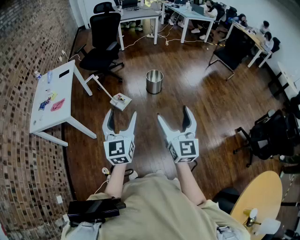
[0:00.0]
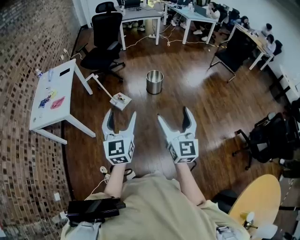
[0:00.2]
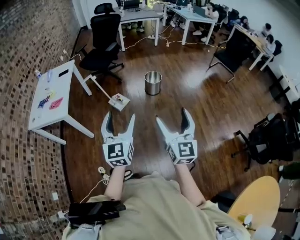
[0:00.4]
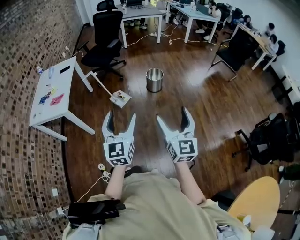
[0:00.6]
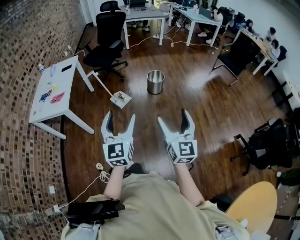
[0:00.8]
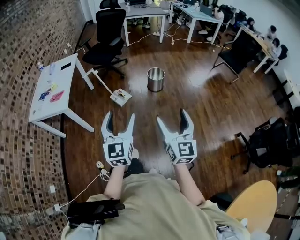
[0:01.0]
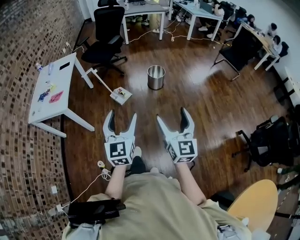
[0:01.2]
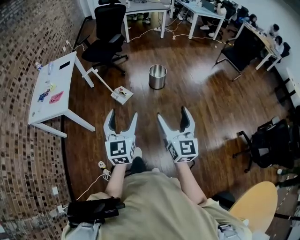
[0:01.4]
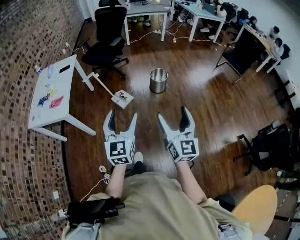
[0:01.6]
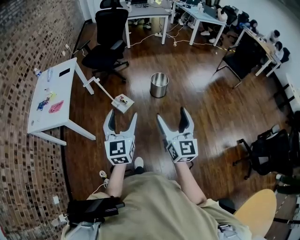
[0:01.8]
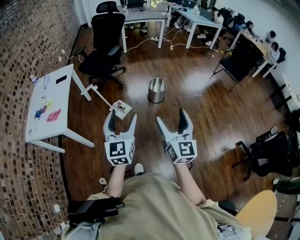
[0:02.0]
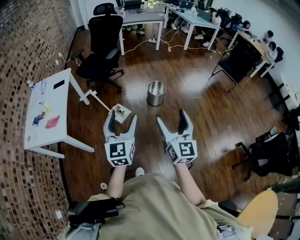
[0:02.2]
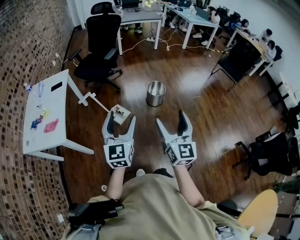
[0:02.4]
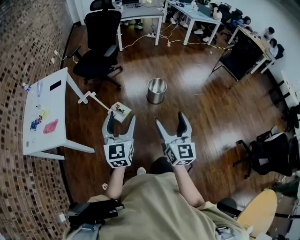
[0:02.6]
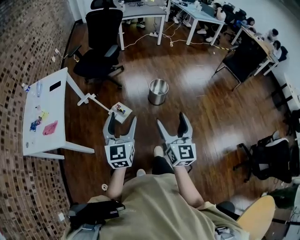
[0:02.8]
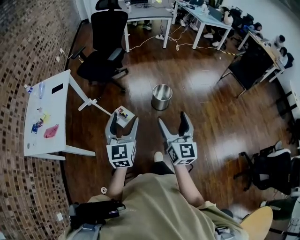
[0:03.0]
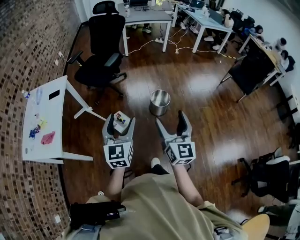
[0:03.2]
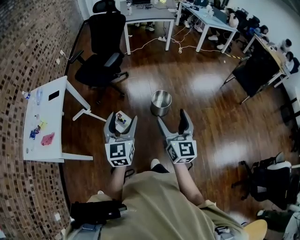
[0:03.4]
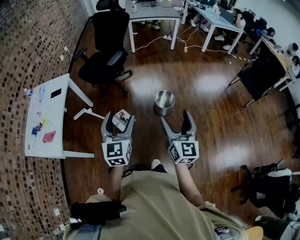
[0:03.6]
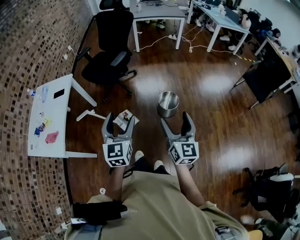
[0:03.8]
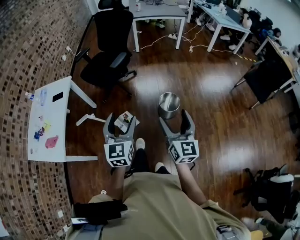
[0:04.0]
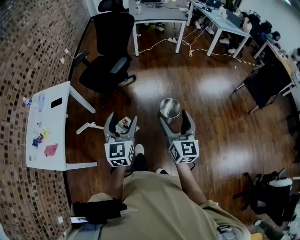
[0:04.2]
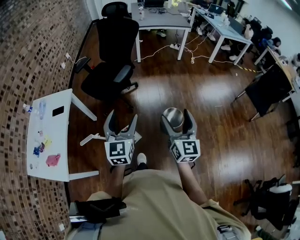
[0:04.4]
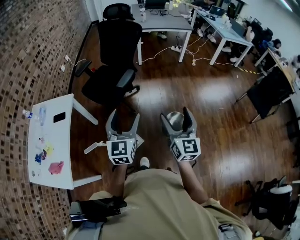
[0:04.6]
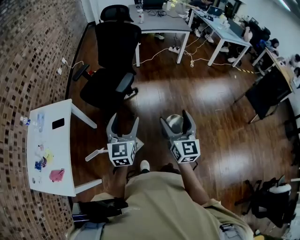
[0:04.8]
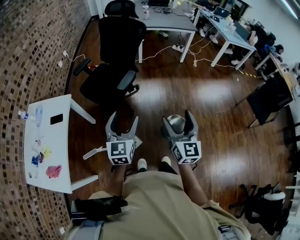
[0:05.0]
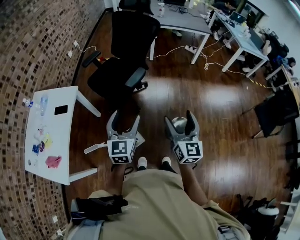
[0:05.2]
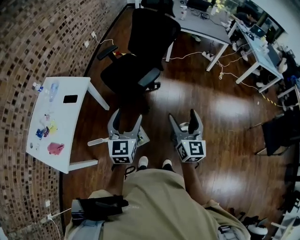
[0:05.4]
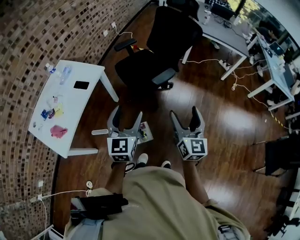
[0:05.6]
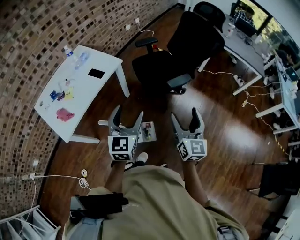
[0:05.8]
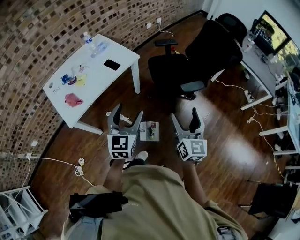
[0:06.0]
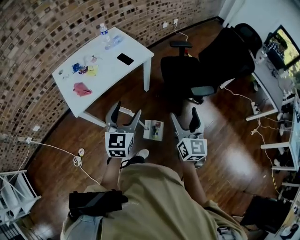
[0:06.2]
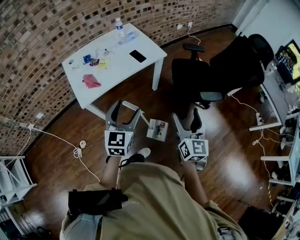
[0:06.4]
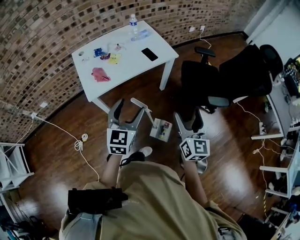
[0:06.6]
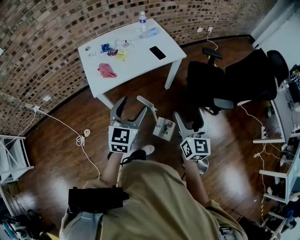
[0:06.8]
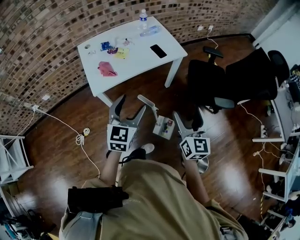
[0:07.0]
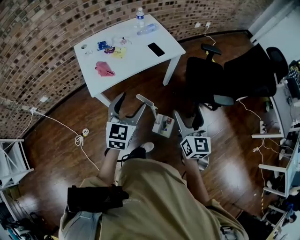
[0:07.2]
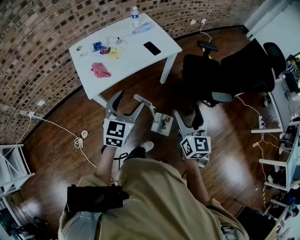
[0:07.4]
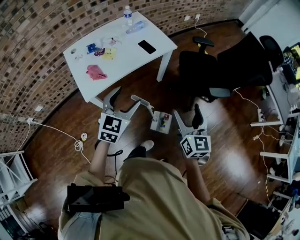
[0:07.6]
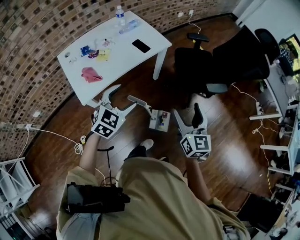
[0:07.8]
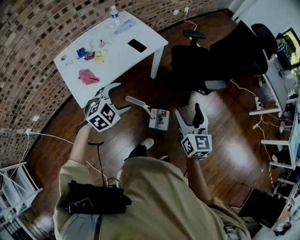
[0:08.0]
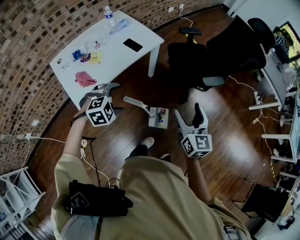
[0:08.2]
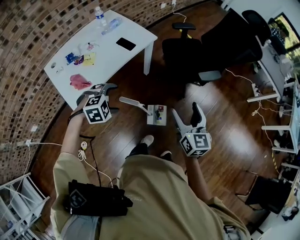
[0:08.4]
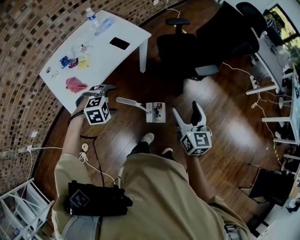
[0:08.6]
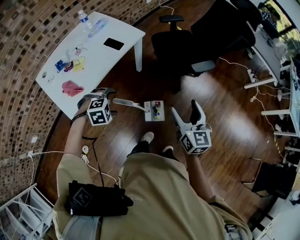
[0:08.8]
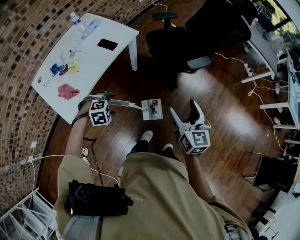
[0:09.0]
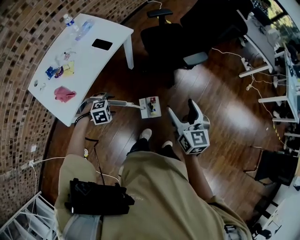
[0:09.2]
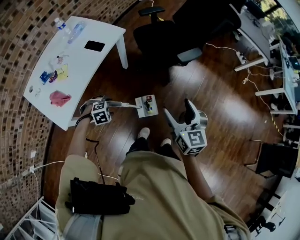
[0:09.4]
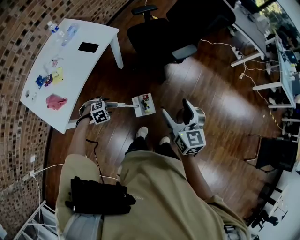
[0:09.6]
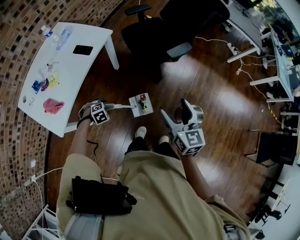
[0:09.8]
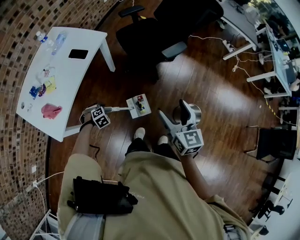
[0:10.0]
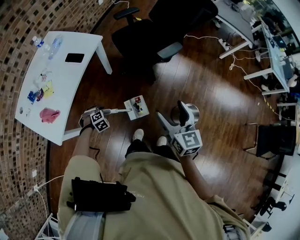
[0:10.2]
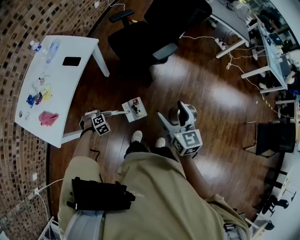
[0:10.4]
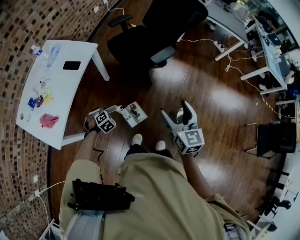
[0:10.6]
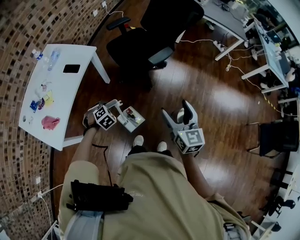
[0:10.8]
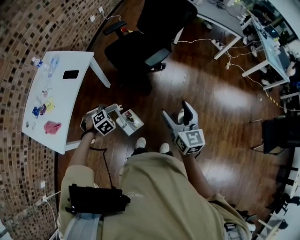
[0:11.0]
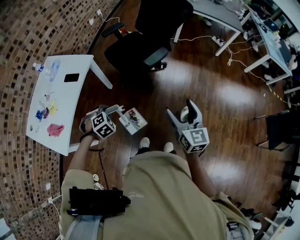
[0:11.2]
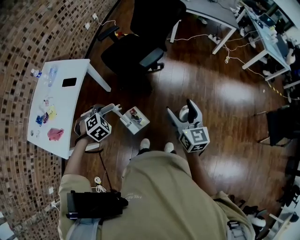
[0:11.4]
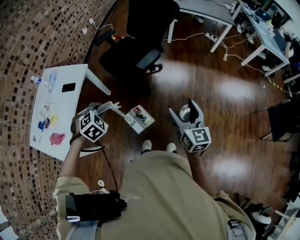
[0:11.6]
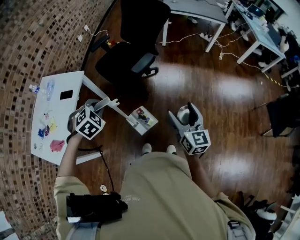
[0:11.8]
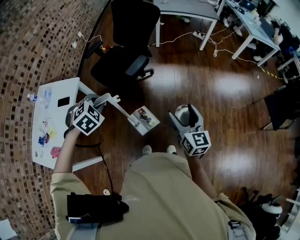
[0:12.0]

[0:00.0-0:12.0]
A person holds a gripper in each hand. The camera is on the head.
0:00.0 to 0:01.6: Both grippers move forward, approximately 5 cm.
0:01.6 to 0:03.0: Both grippers travel together forward, approximately 25 cm.
0:03.0 to 0:04.4: The two grippers go approximately 30 cm forward.
0:04.4 to 0:06.0: The right gripper changes place by approximately 30 cm, and rotates some 40 degrees, while the left gripper ends up roughly 20 cm from where it was, and swivels some 40 degrees.
0:06.0 to 0:07.6: Both grippers move to the left, some 15 cm.
0:07.6 to 0:09.0: The left gripper heads downward, covering about 20 cm, and points its fingers roughly 50 degrees further downward; the right gripper moves some 10 cm.
0:09.0 to 0:10.4: The left gripper moves downward, roughly 15 cm, and closes its fingers, while the right gripper ends up roughly 10 cm from where it was.
0:10.4 to 0:12.0: The left gripper moves upward and to the right, roughly 40 cm, while the right gripper is displaced to the right by some 20 cm, and rotates roughly 20 degrees.

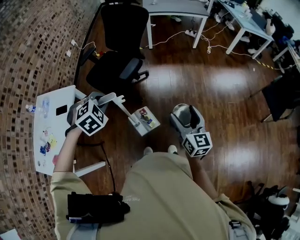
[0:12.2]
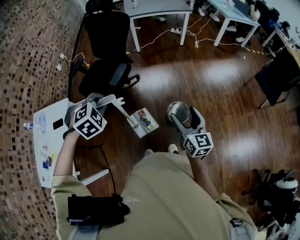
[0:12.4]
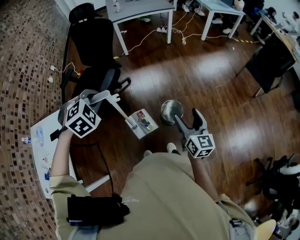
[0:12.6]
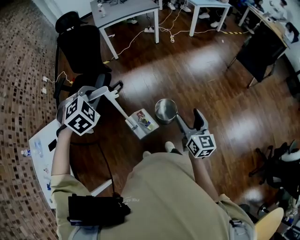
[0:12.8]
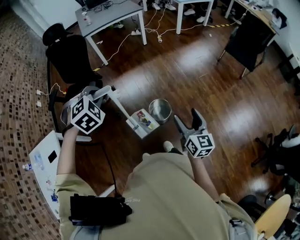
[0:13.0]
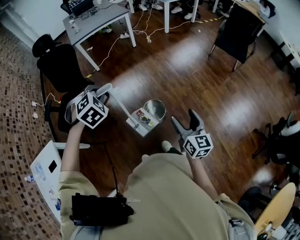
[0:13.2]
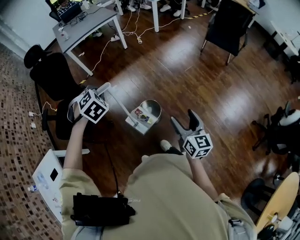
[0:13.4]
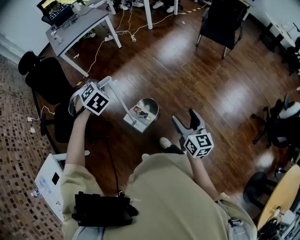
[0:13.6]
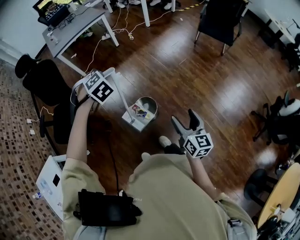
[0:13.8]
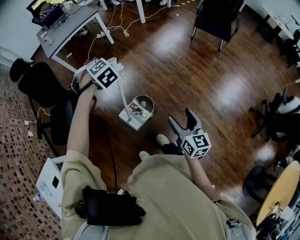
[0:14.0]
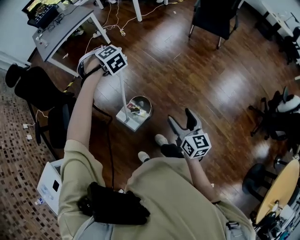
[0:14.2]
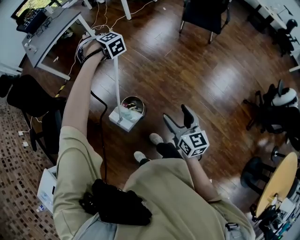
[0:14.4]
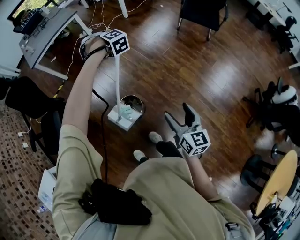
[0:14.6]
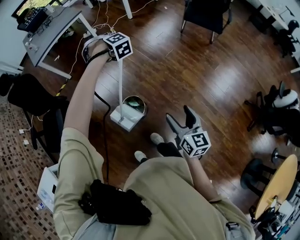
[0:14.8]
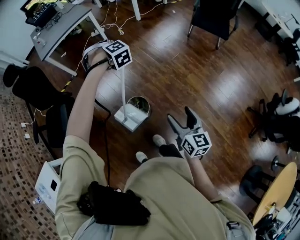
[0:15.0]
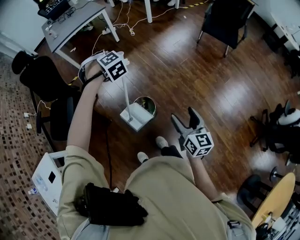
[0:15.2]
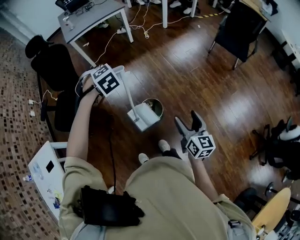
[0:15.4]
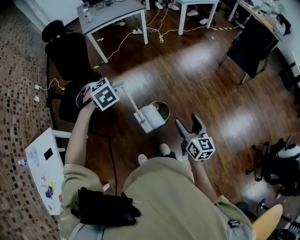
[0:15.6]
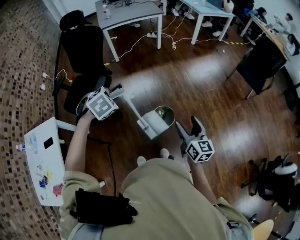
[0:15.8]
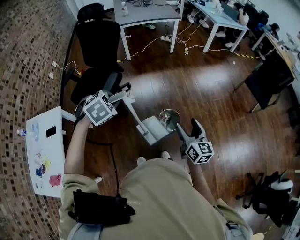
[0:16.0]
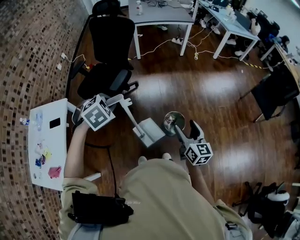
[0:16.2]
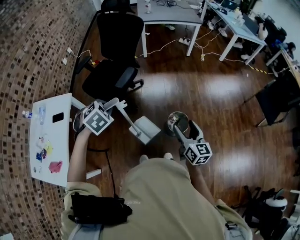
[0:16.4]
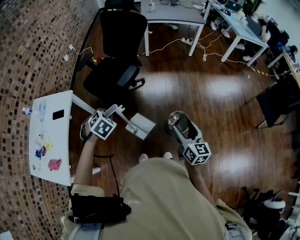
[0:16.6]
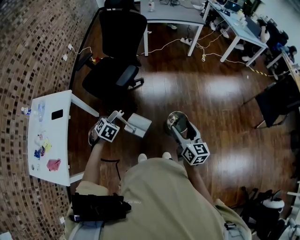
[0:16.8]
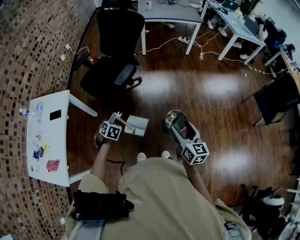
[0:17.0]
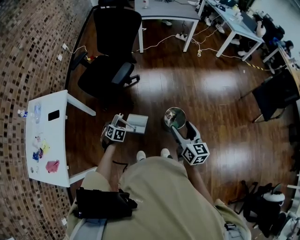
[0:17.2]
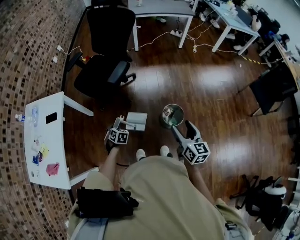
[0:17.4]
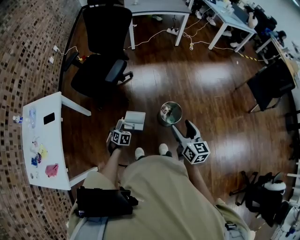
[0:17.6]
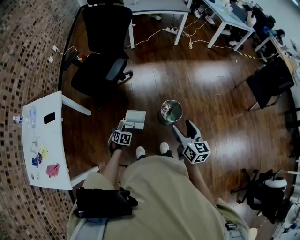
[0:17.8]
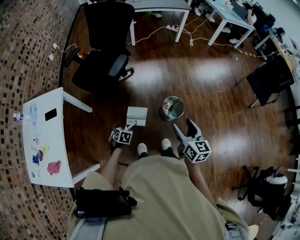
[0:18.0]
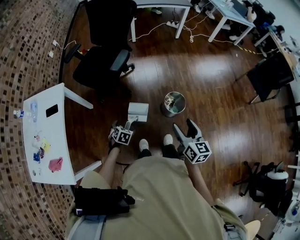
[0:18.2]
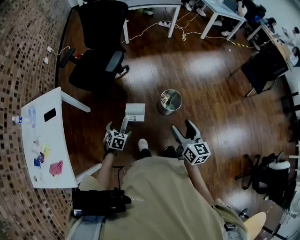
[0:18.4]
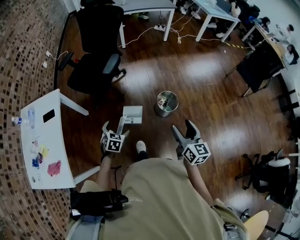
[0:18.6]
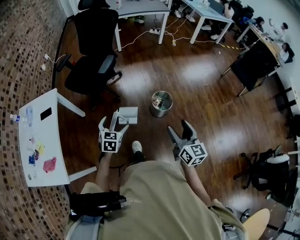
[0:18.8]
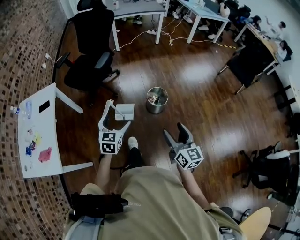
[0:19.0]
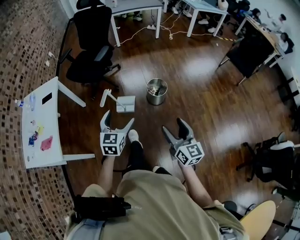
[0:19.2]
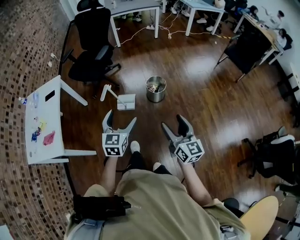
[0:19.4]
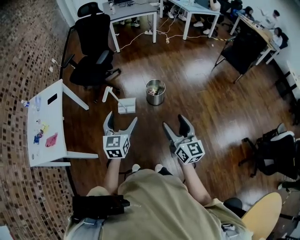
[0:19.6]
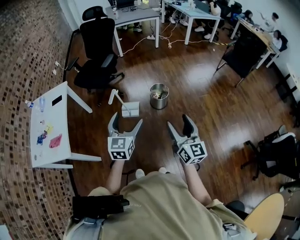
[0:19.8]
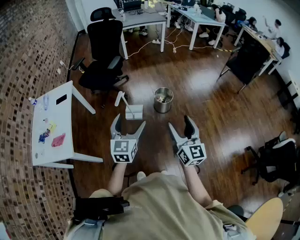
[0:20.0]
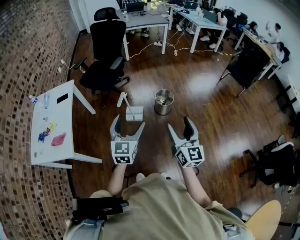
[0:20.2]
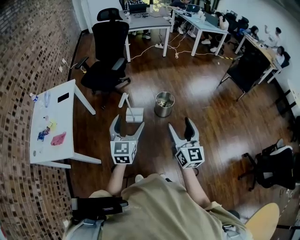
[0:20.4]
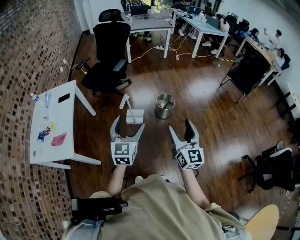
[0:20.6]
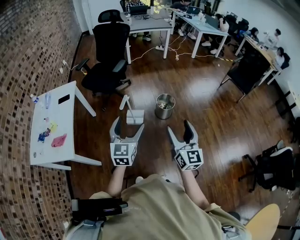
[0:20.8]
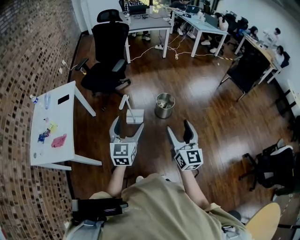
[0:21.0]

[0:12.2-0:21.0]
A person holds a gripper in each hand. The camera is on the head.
0:12.2 to 0:13.6: The left gripper moves about 35 cm, and rotates some 20 degrees, while the right gripper shifts by about 30 cm, and changes its angle by about 40 degrees.
0:13.6 to 0:15.2: The left gripper shifts roughly 15 cm forward and to the right.
0:15.2 to 0:16.6: The right gripper moves some 30 cm, and swivels roughly 30 degrees. The left gripper moves roughly 50 cm, and twists approximately 60 degrees counterclockwise, seen from behind.
0:16.6 to 0:18.0: The left gripper is displaced downward by approximately 25 cm, rotates some 20 degrees, and opens; the right gripper shifts some 5 cm backward.
0:18.0 to 0:19.6: The right gripper moves backward, roughly 40 cm. The left gripper heads upward, backward and to the right, covering approximately 50 cm, and angles its fingers upward, by approximately 50 degrees.
0:19.6 to 0:21.0: The grippers both shift to the left by some 10 cm.

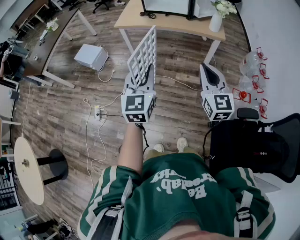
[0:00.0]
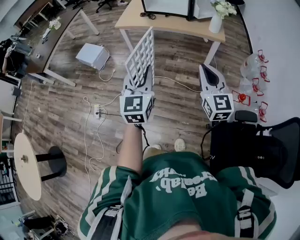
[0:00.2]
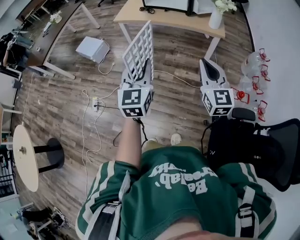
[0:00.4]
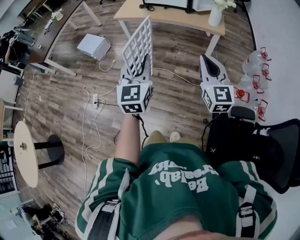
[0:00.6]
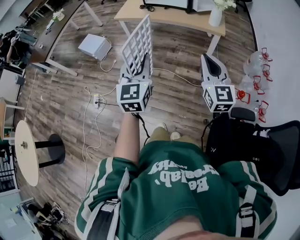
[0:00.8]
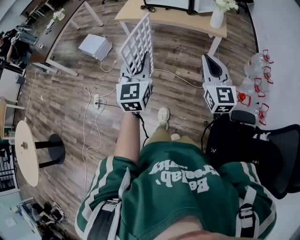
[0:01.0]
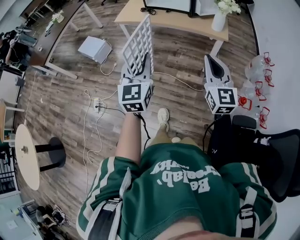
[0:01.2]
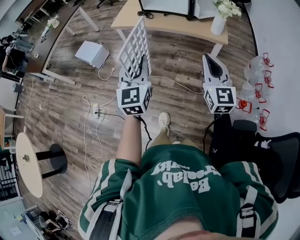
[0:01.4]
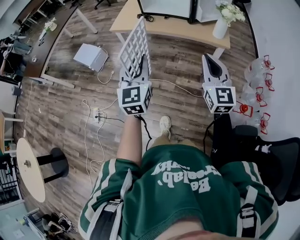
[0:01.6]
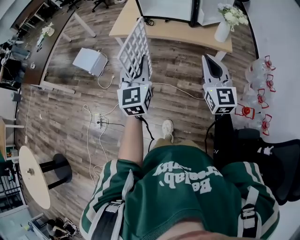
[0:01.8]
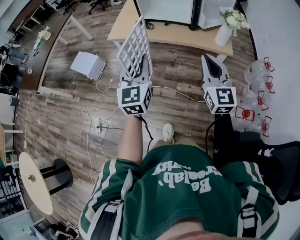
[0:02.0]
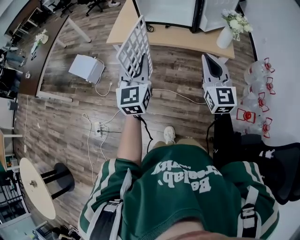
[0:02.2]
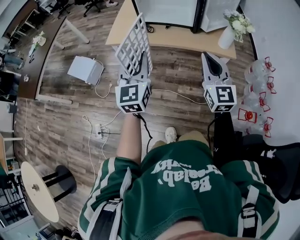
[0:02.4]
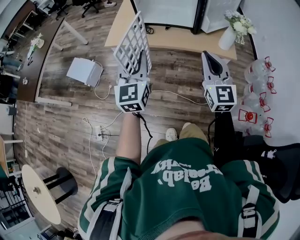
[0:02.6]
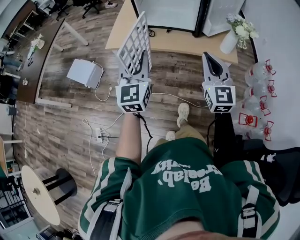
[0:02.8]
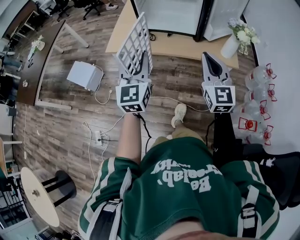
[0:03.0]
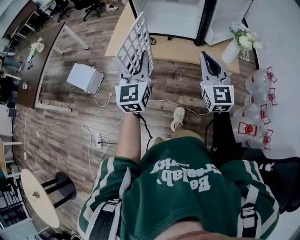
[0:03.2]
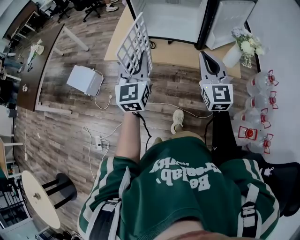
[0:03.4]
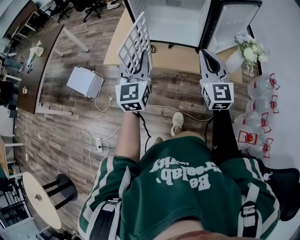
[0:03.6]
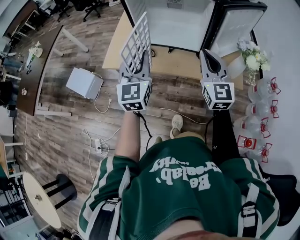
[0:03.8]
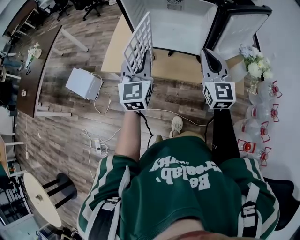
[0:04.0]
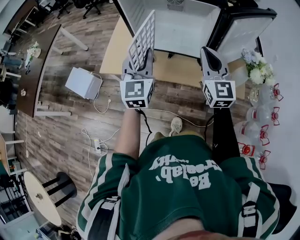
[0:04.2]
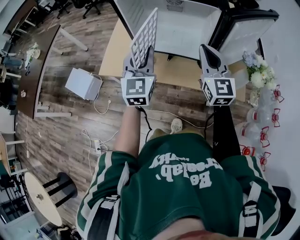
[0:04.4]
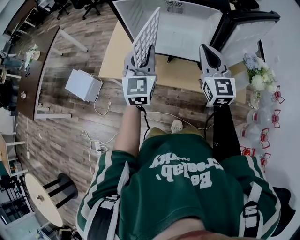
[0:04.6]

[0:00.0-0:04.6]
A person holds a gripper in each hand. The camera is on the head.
0:00.0 to 0:01.6: The left gripper shifts roughly 15 cm forward. Meanwhile the right gripper heads forward and to the right, covering some 15 cm.
0:01.6 to 0:03.0: Both grippers travel together forward, roughly 20 cm.
0:03.0 to 0:04.6: The two grippers go some 30 cm forward.
